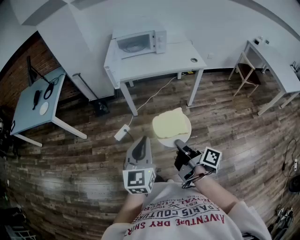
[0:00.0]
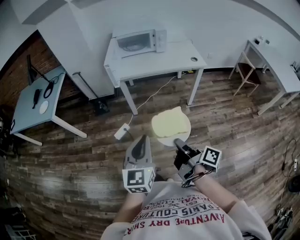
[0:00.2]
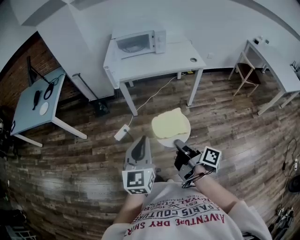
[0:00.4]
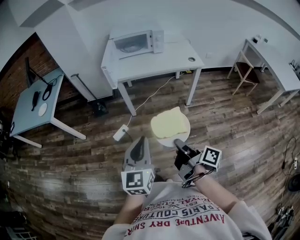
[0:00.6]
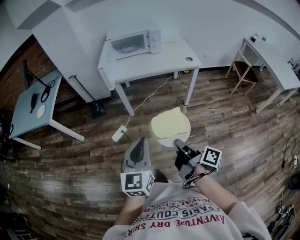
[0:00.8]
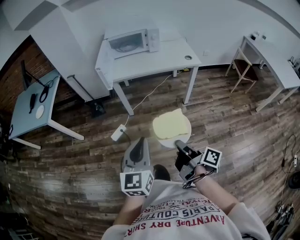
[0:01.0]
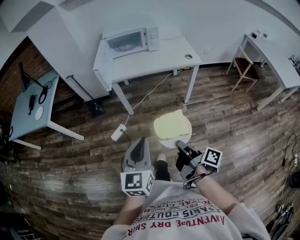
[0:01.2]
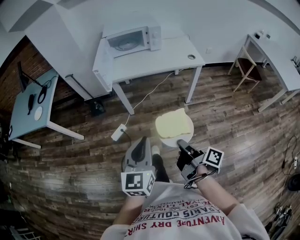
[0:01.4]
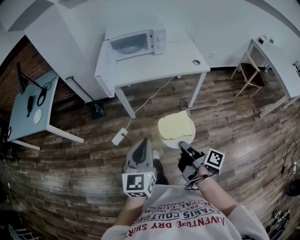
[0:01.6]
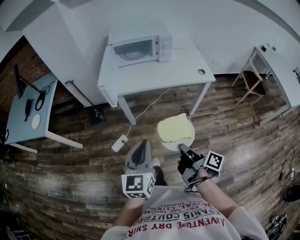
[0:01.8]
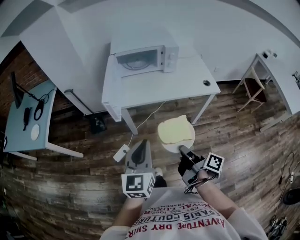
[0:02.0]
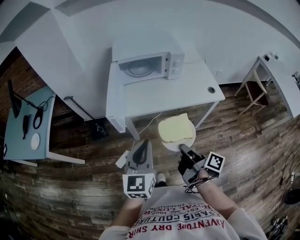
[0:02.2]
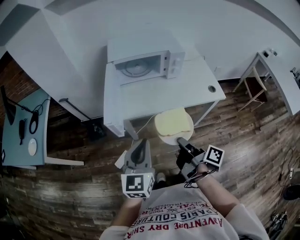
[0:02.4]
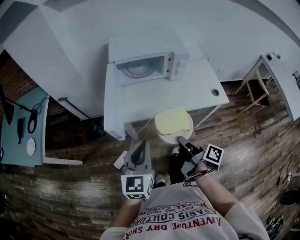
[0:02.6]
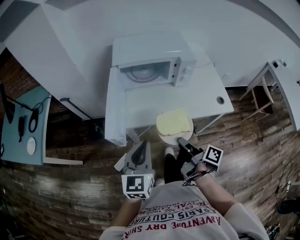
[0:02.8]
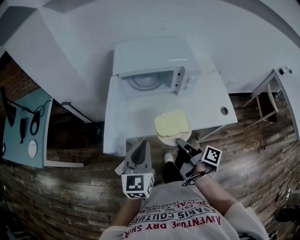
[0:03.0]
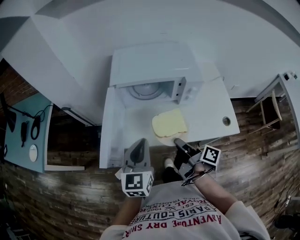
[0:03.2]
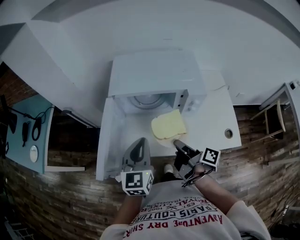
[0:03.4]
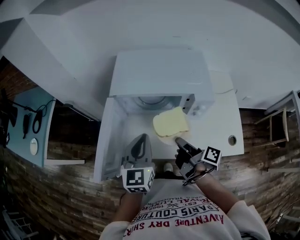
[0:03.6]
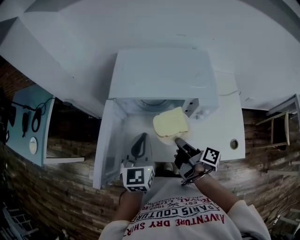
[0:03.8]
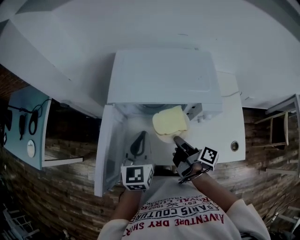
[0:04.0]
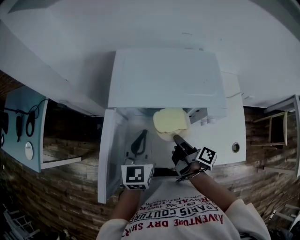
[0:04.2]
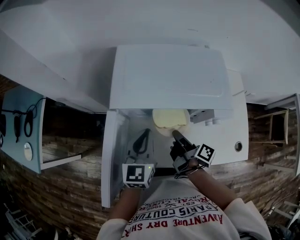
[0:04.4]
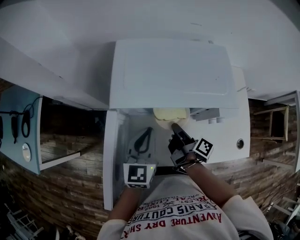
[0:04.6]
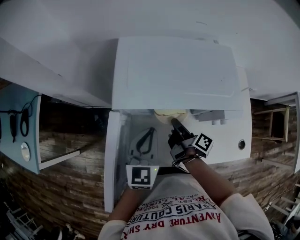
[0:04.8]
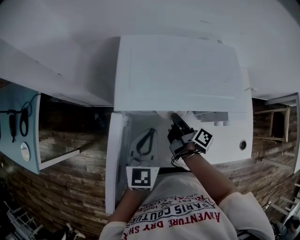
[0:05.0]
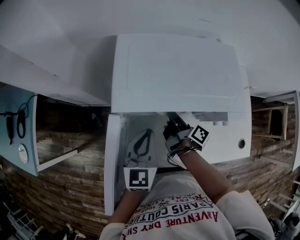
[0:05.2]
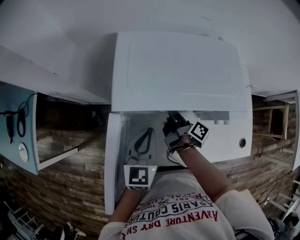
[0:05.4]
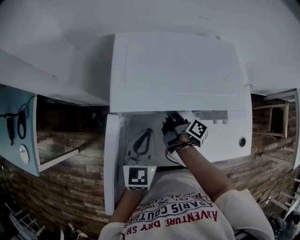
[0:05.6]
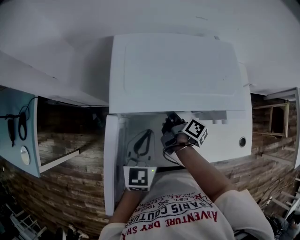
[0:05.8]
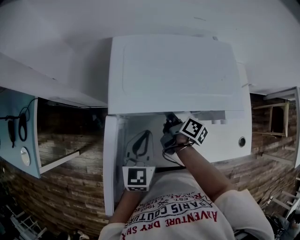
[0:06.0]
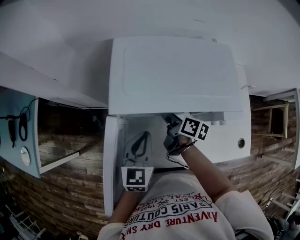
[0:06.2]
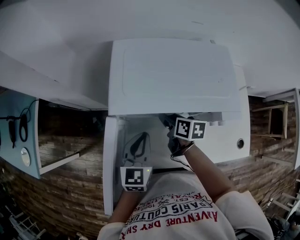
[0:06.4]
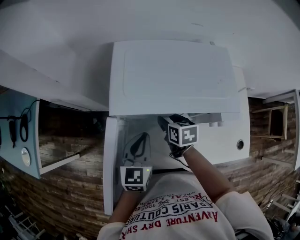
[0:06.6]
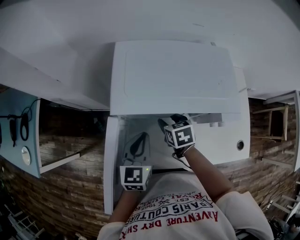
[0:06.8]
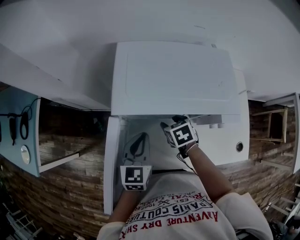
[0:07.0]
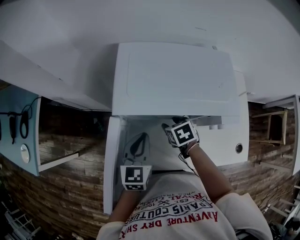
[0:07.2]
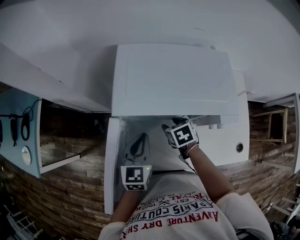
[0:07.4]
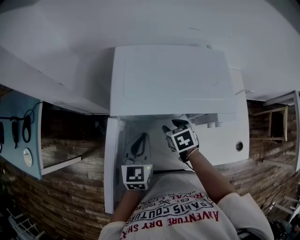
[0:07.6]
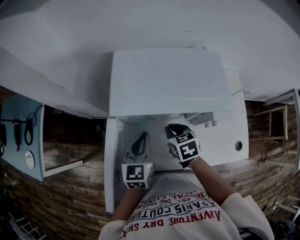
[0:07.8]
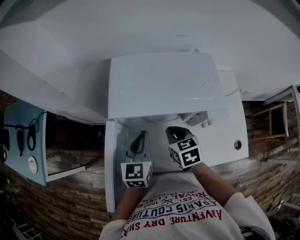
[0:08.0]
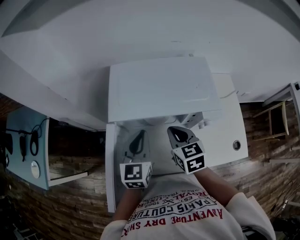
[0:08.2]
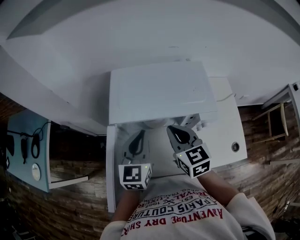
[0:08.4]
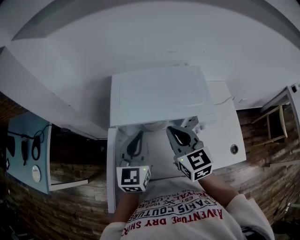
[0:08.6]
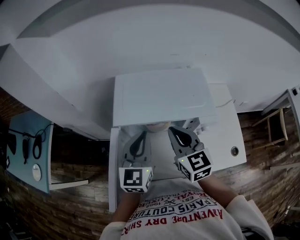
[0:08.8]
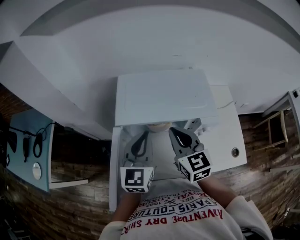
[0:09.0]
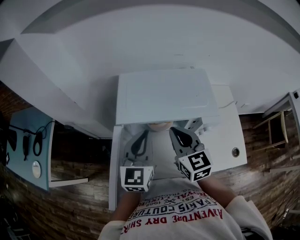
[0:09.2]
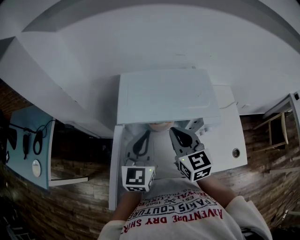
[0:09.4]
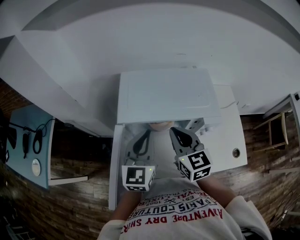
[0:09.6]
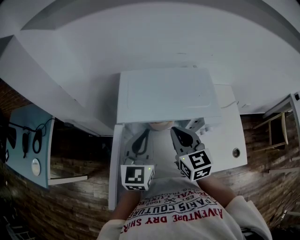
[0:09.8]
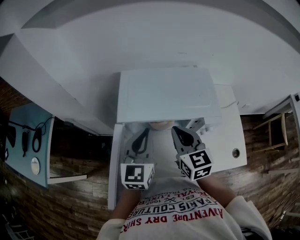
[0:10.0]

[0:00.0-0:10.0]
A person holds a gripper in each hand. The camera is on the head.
0:00.0 to 0:01.4: The right gripper heads to the right, covering approximately 5 cm; the left gripper is displaced forward by about 5 cm.
0:01.4 to 0:02.8: Both grippers are carried forward, about 40 cm.
0:02.8 to 0:04.2: Both grippers travel together forward, about 30 cm.
0:04.2 to 0:05.8: The left gripper changes place by some 5 cm. The right gripper travels forward, to the left and downward by some 15 cm.
0:05.8 to 0:07.2: The right gripper rolls counterclockwise, seen from behind, by approximately 70 degrees, and opens its fingers.
0:07.2 to 0:08.6: The left gripper is displaced upward by approximately 15 cm. The right gripper shifts about 25 cm upward, points its fingers roughly 50 degrees further upward, and closes.
0:08.6 to 0:10.0: The grippers make only small movements.

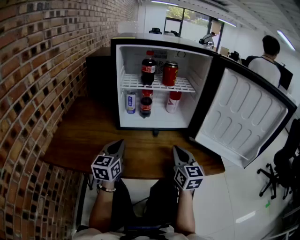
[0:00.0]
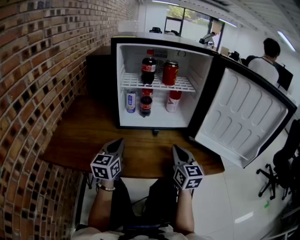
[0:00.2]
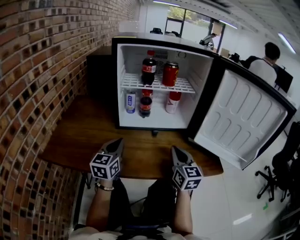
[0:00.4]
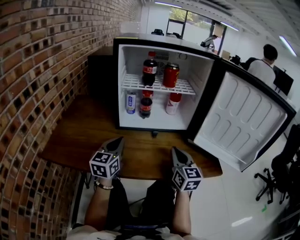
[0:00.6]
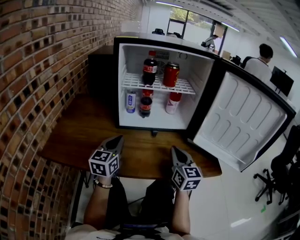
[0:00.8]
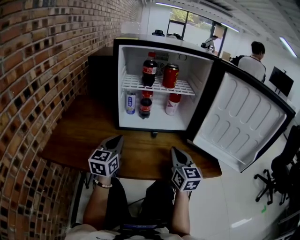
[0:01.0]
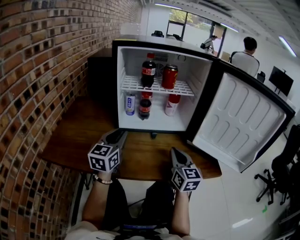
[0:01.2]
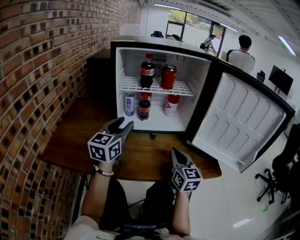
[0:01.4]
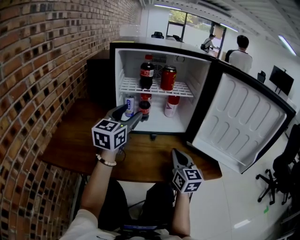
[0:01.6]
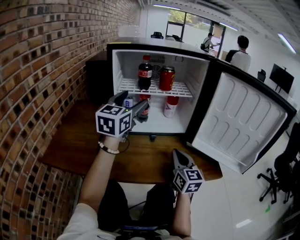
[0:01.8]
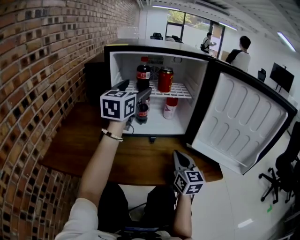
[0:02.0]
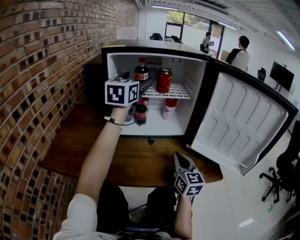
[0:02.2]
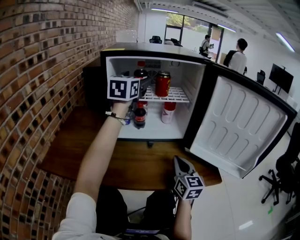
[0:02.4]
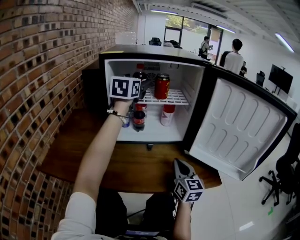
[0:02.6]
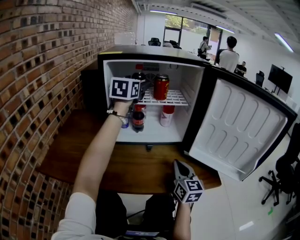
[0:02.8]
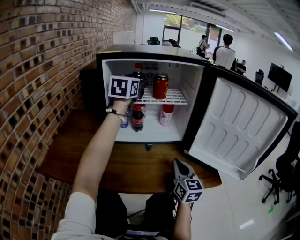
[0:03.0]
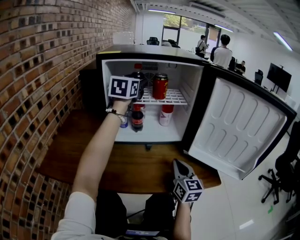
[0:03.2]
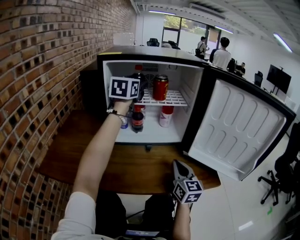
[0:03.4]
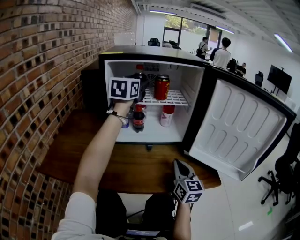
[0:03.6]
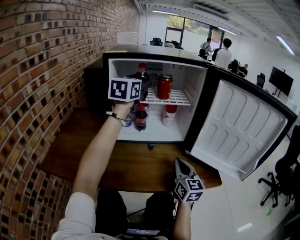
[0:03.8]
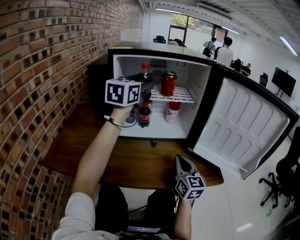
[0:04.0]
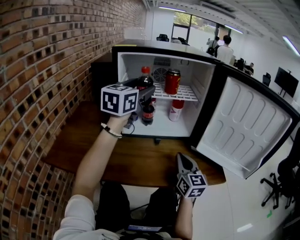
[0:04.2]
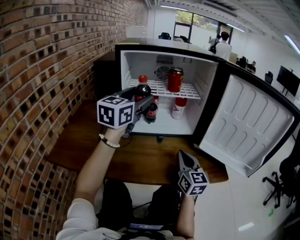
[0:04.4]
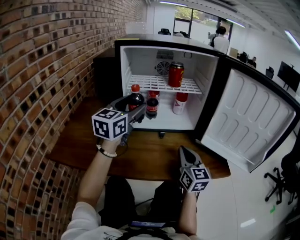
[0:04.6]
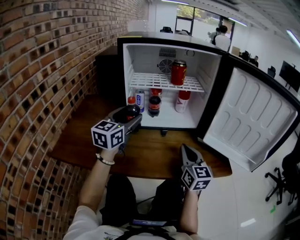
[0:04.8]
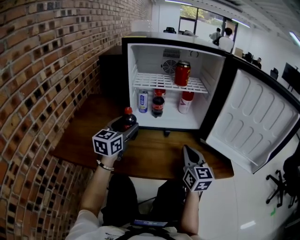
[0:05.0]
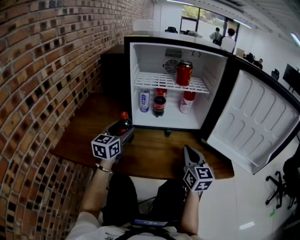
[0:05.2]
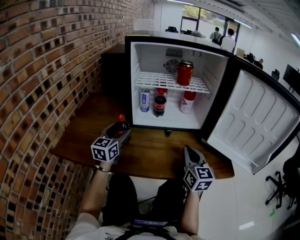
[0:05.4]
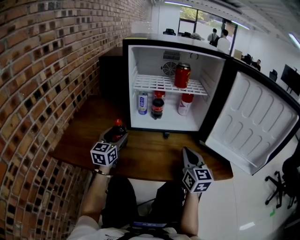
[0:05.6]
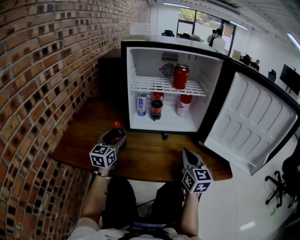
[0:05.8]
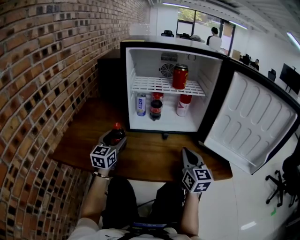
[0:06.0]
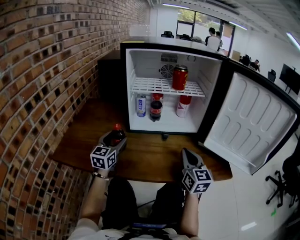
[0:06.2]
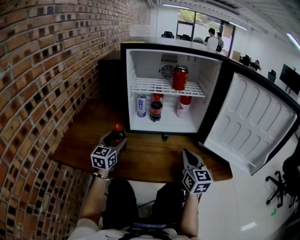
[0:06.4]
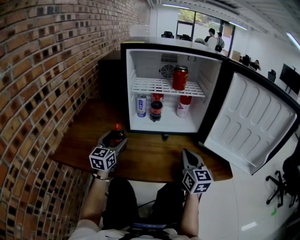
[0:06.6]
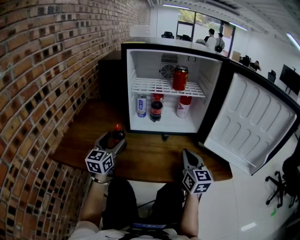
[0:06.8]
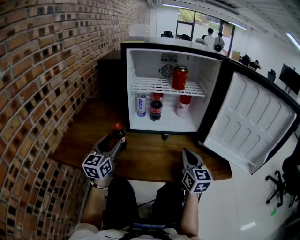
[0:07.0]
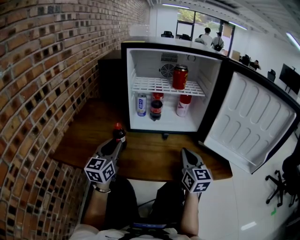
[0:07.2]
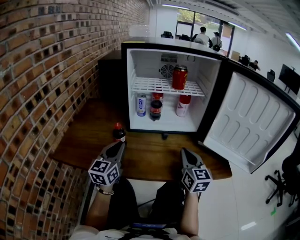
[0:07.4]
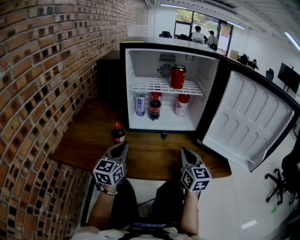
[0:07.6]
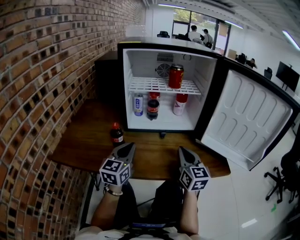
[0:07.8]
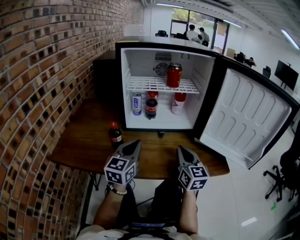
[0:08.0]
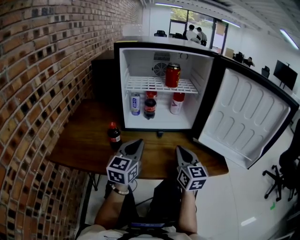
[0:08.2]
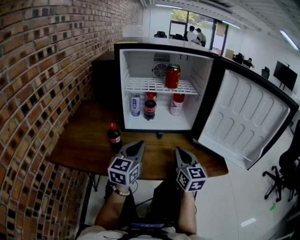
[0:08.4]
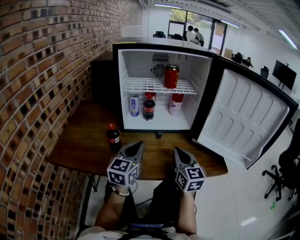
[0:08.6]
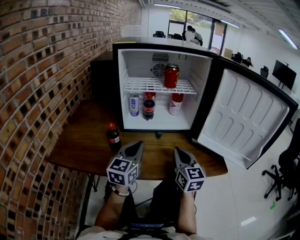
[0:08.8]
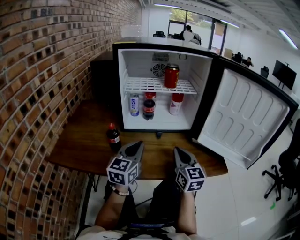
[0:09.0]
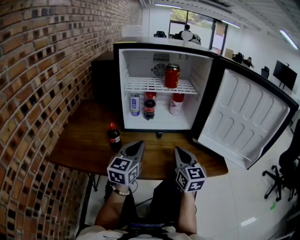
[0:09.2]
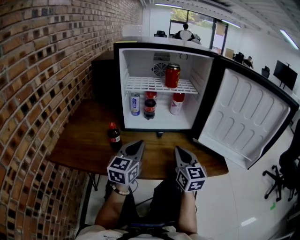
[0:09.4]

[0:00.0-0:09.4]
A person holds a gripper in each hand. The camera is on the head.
0:00.0 to 0:01.6: The left gripper travels upward and forward by roughly 15 cm, and opens its fingers.
0:01.6 to 0:03.2: The left gripper heads forward and upward, covering approximately 20 cm.
0:03.2 to 0:04.8: The left gripper goes about 25 cm backward and downward.
0:04.8 to 0:06.2: The left gripper shifts roughly 15 cm downward and to the left.
0:06.2 to 0:07.8: The left gripper goes about 10 cm to the right and backward, and closes.
0:07.8 to 0:09.4: The left gripper shifts roughly 5 cm to the right.

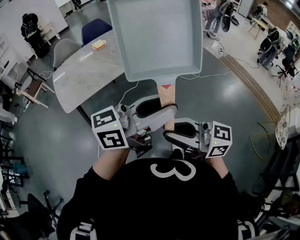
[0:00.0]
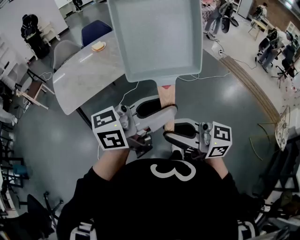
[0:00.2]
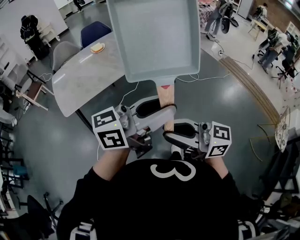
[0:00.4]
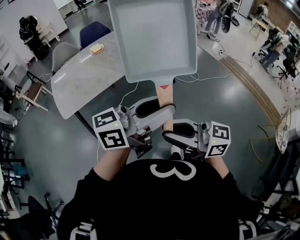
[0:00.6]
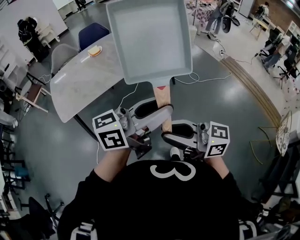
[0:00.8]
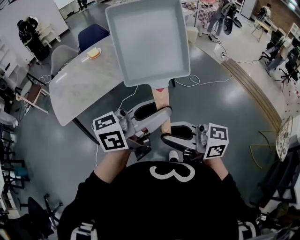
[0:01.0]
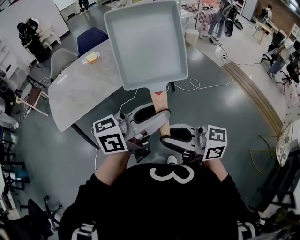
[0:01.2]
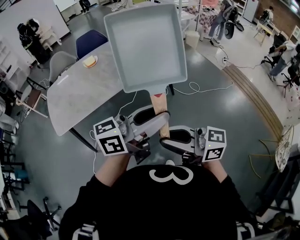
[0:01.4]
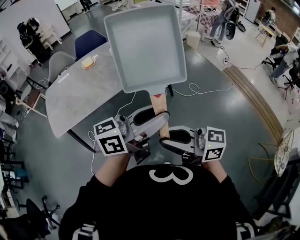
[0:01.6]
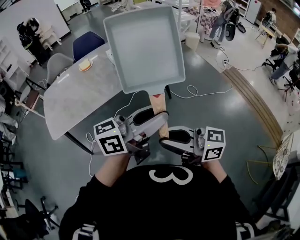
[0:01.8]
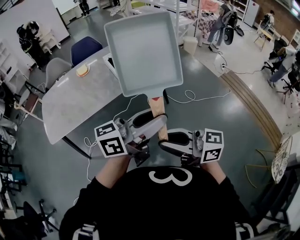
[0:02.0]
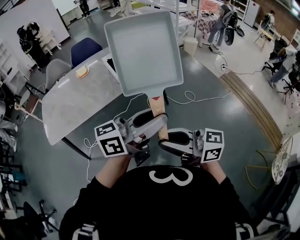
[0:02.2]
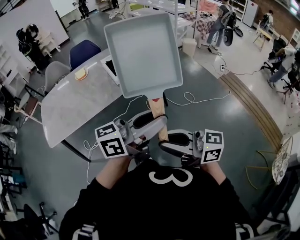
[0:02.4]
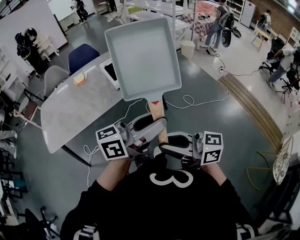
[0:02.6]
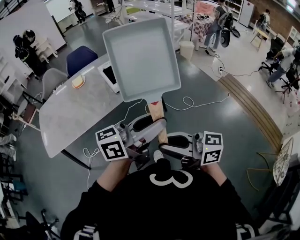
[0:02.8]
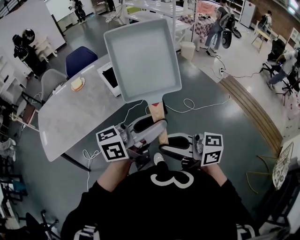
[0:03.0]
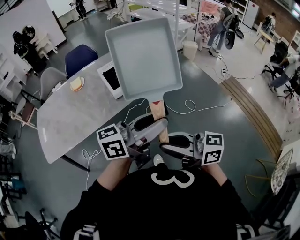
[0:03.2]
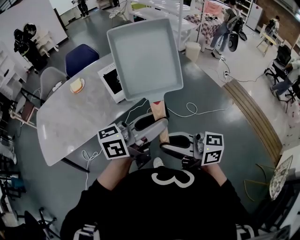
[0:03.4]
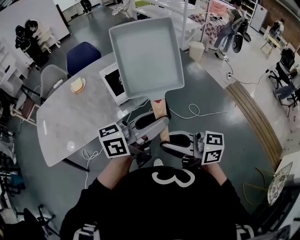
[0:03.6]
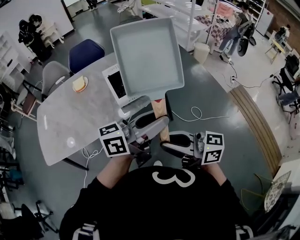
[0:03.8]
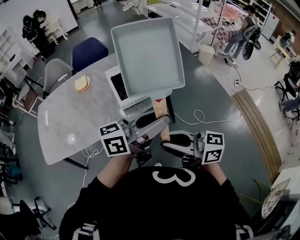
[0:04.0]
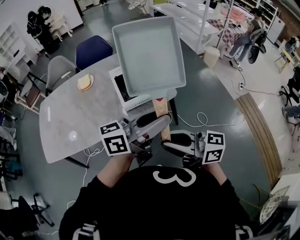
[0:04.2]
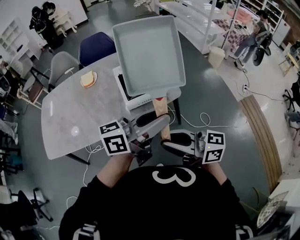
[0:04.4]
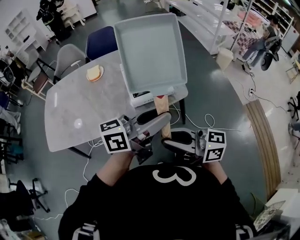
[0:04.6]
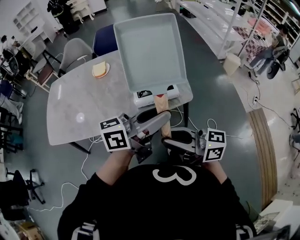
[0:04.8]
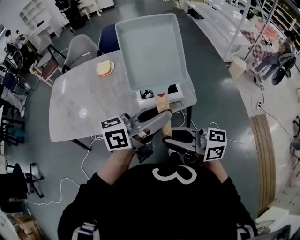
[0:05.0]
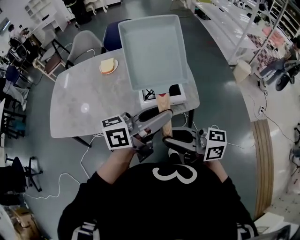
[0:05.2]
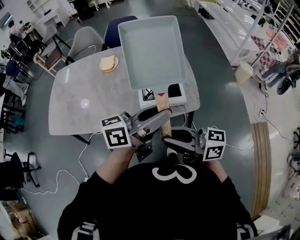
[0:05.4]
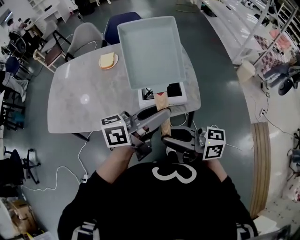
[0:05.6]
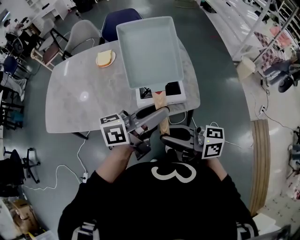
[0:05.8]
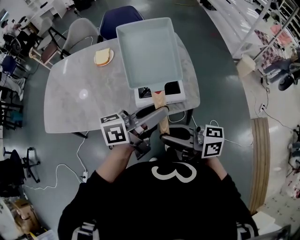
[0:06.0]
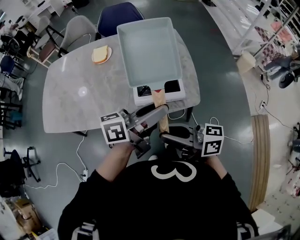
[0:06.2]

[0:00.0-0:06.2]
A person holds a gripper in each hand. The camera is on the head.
0:00.0 to 0:01.6: The left gripper ends up some 25 cm from where it was. Meanwhile the right gripper changes place by approximately 25 cm.
0:01.6 to 0:03.2: The right gripper changes place by roughly 15 cm. Meanwhile the left gripper moves about 15 cm.
0:03.2 to 0:04.6: The left gripper moves some 20 cm. The right gripper shifts by roughly 20 cm.
0:04.6 to 0:06.2: The right gripper changes place by approximately 15 cm, while the left gripper changes place by about 15 cm.
